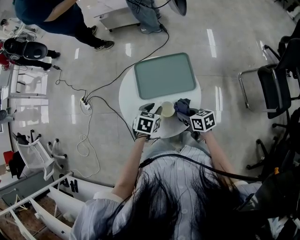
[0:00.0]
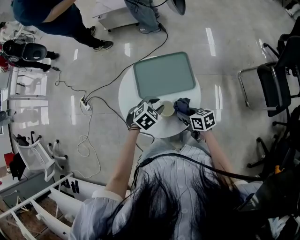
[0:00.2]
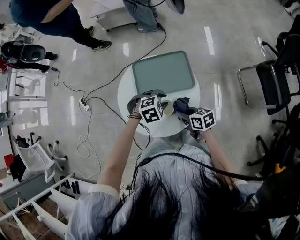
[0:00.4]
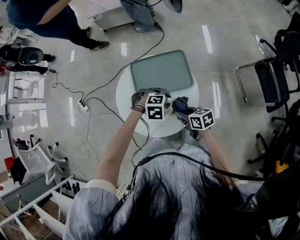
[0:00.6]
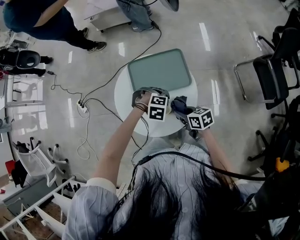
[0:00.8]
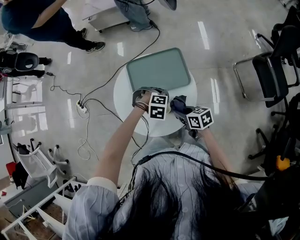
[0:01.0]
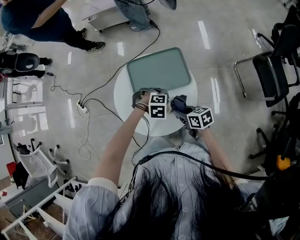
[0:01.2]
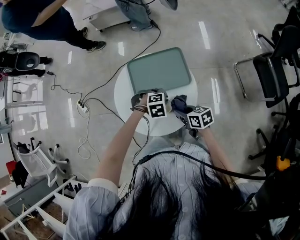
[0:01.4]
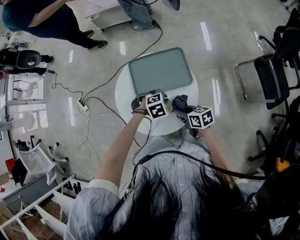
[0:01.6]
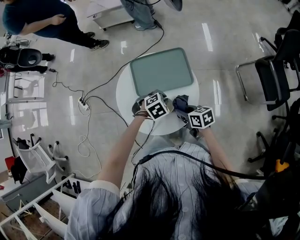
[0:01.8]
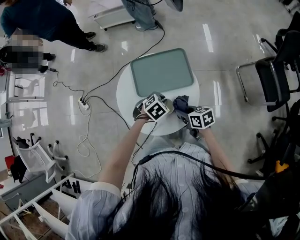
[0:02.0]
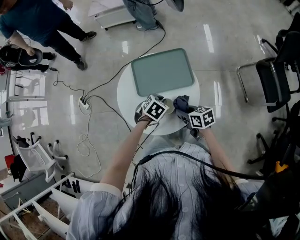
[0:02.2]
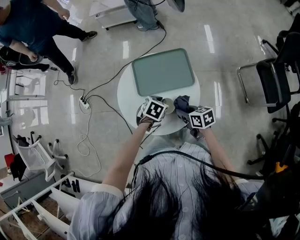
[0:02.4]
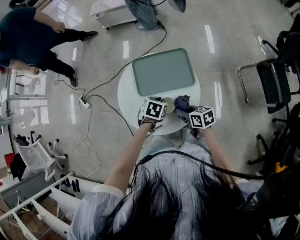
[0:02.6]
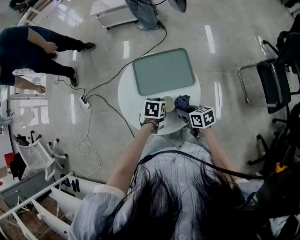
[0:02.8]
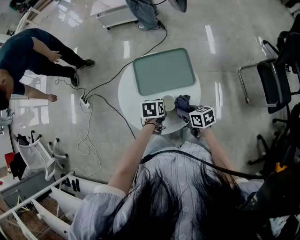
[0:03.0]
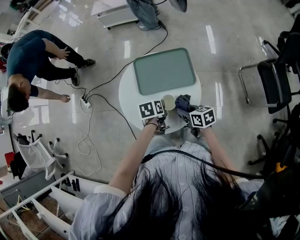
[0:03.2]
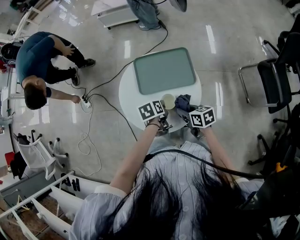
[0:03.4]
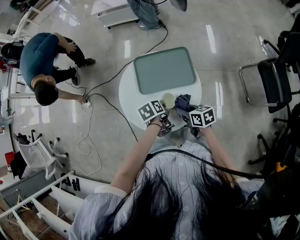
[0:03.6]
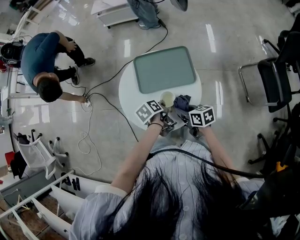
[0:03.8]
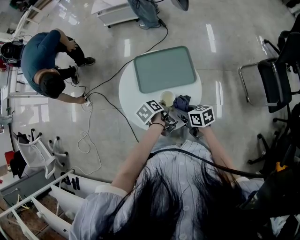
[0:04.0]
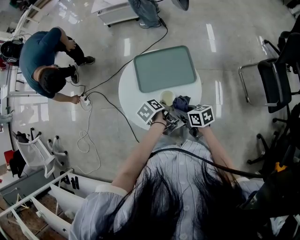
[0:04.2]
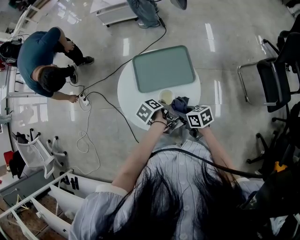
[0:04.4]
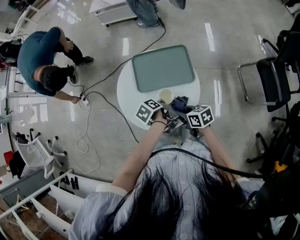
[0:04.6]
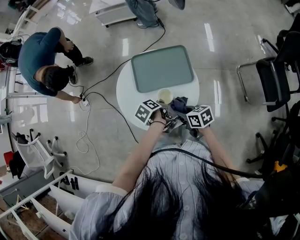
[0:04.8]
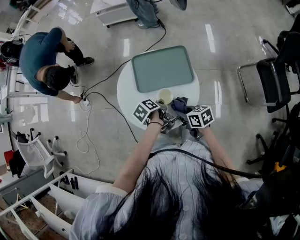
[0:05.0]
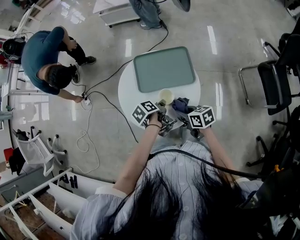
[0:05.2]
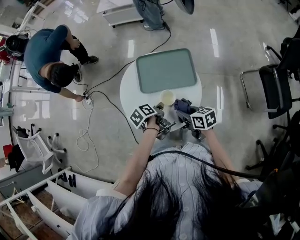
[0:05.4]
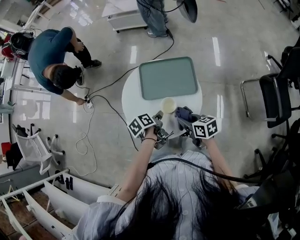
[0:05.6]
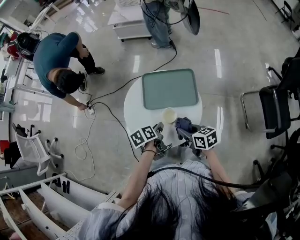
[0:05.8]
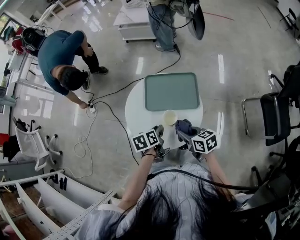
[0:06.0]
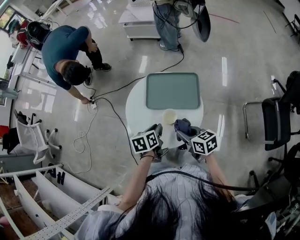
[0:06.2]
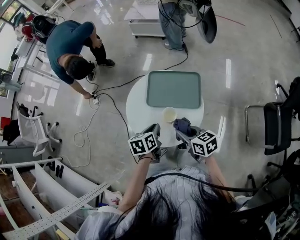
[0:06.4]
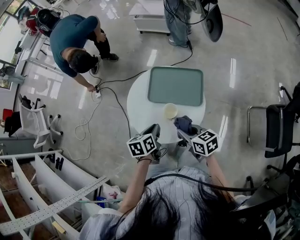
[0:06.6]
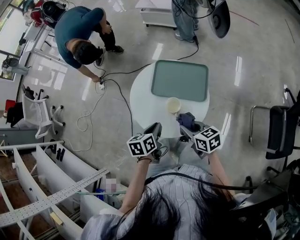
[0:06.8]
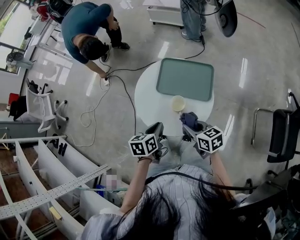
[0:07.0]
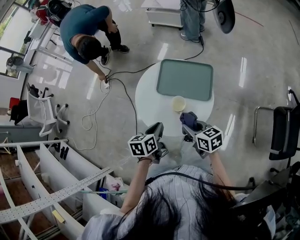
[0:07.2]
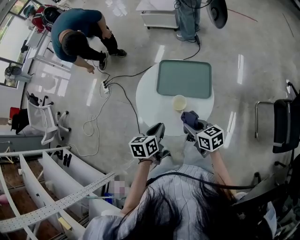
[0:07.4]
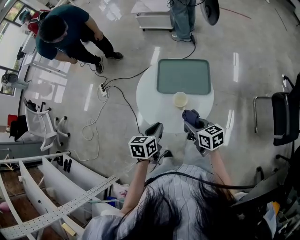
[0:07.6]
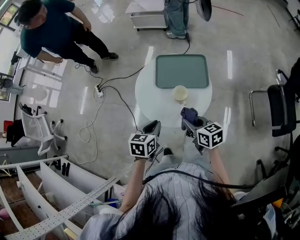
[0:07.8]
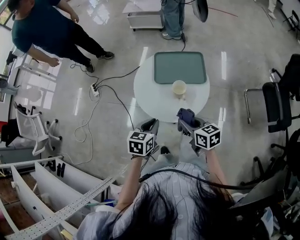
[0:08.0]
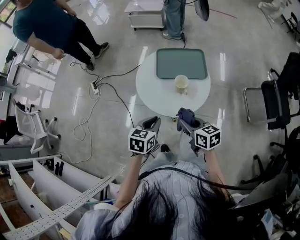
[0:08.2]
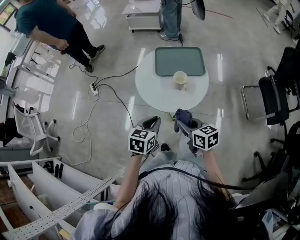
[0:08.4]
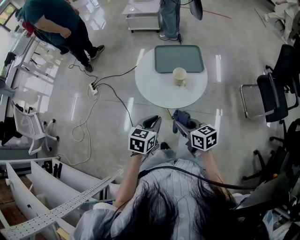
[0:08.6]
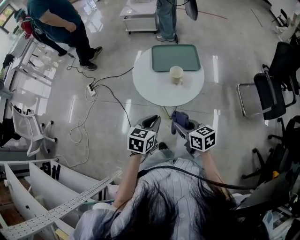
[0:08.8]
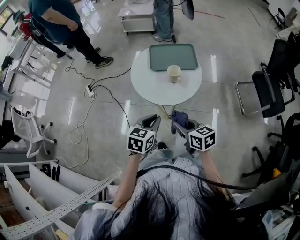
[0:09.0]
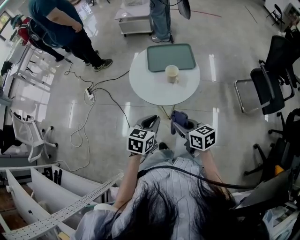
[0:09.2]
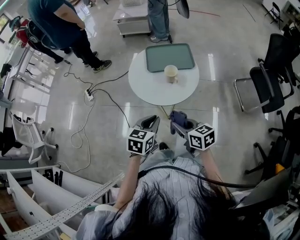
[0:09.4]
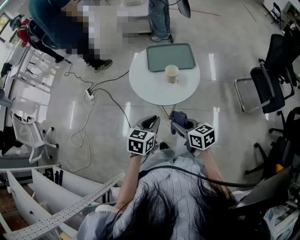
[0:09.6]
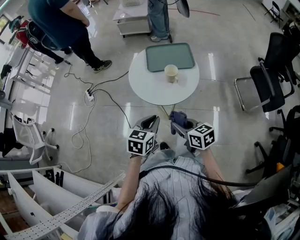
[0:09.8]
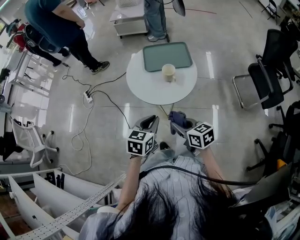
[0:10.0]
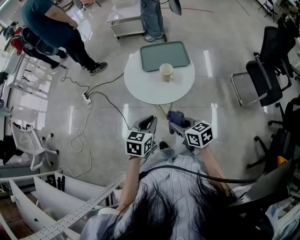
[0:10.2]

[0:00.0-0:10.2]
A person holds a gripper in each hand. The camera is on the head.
0:00.0 to 0:01.4: The left gripper changes place by some 10 cm, and rotates around the line of its fingers by about 60 degrees, clockwise from behind.
0:01.4 to 0:03.0: The left gripper shifts by about 5 cm, and rolls counterclockwise, seen from behind, by approximately 90 degrees.
0:03.0 to 0:04.4: The left gripper rolls counterclockwise, seen from behind, by some 50 degrees.
0:04.4 to 0:05.8: There are only small adjustments of the grippers.
0:05.8 to 0:07.2: The left gripper moves upward and backward, some 10 cm, and changes its angle by roughly 20 degrees.
0:07.2 to 0:08.8: The grippers both shift backward and to the left by about 20 cm. The left gripper swivels approximately 40 degrees.
0:08.8 to 0:10.2: The grippers make only small movements.

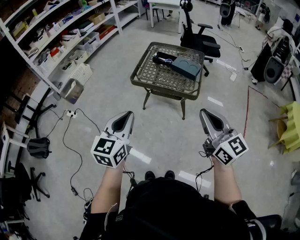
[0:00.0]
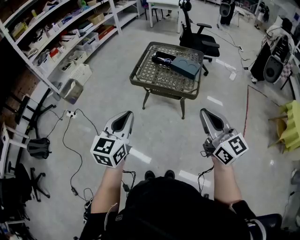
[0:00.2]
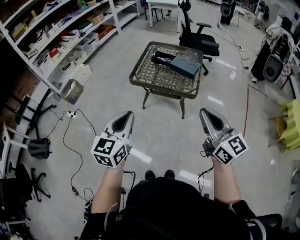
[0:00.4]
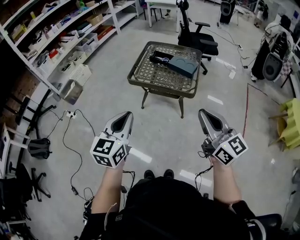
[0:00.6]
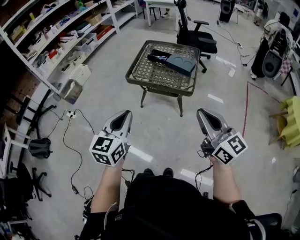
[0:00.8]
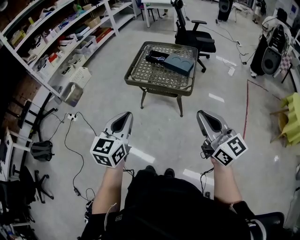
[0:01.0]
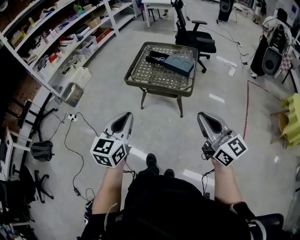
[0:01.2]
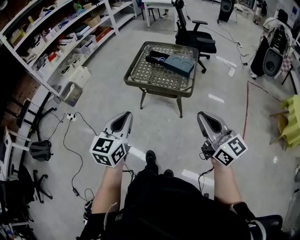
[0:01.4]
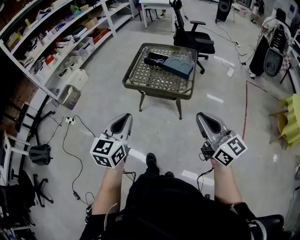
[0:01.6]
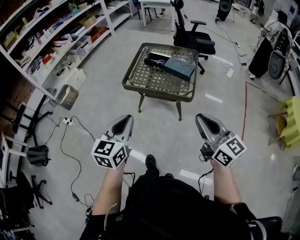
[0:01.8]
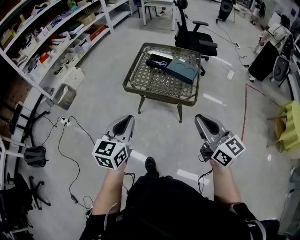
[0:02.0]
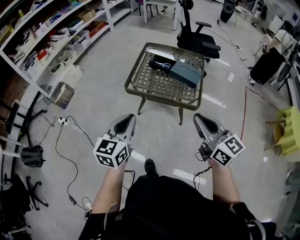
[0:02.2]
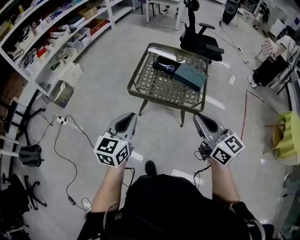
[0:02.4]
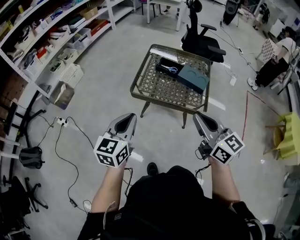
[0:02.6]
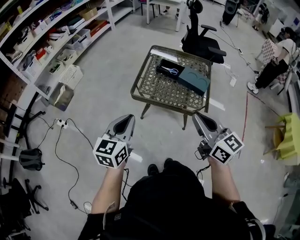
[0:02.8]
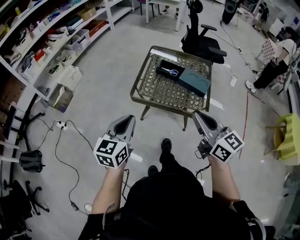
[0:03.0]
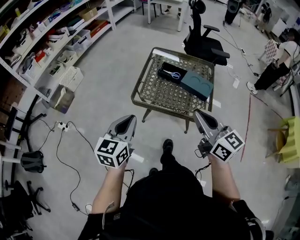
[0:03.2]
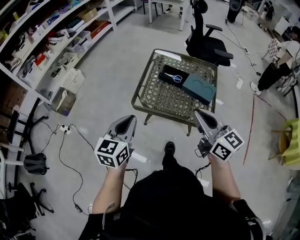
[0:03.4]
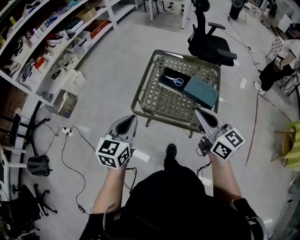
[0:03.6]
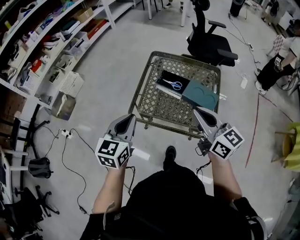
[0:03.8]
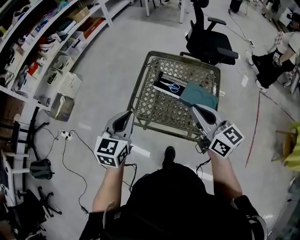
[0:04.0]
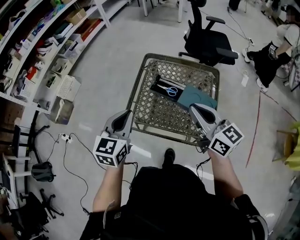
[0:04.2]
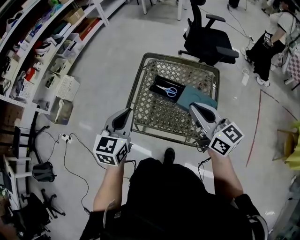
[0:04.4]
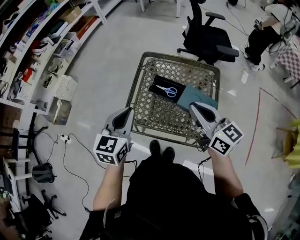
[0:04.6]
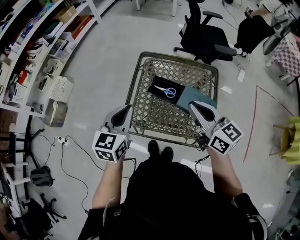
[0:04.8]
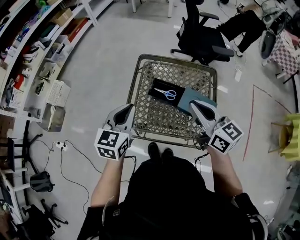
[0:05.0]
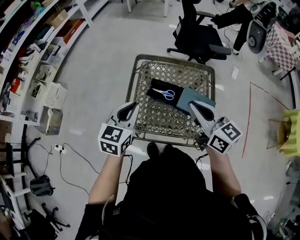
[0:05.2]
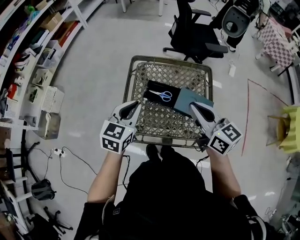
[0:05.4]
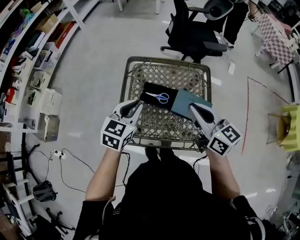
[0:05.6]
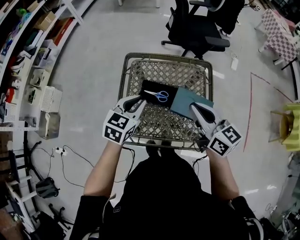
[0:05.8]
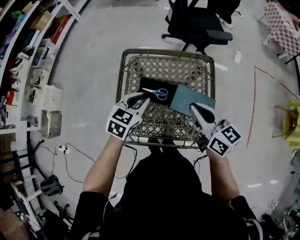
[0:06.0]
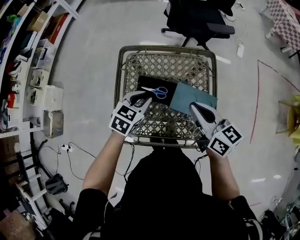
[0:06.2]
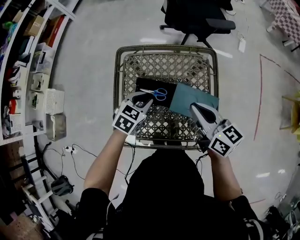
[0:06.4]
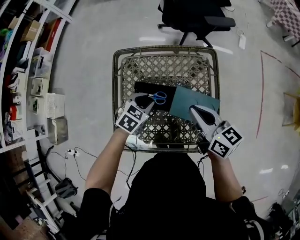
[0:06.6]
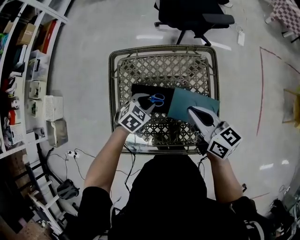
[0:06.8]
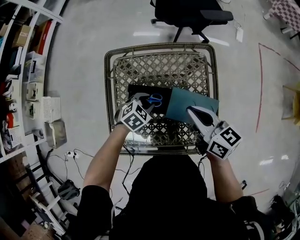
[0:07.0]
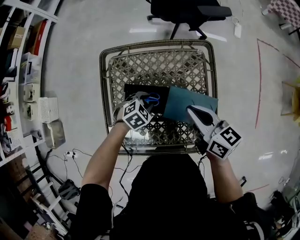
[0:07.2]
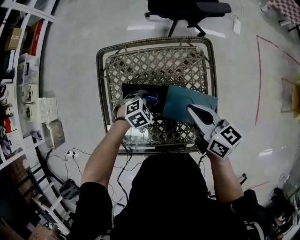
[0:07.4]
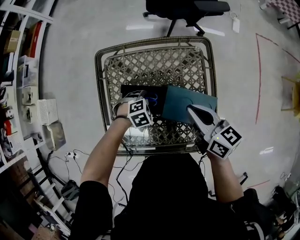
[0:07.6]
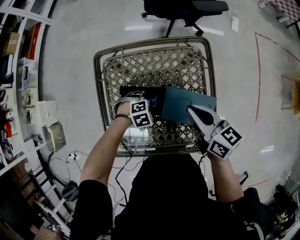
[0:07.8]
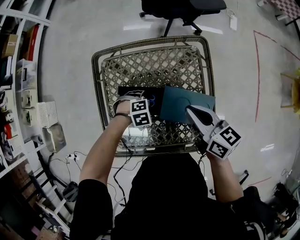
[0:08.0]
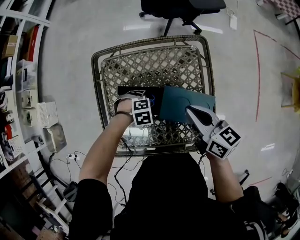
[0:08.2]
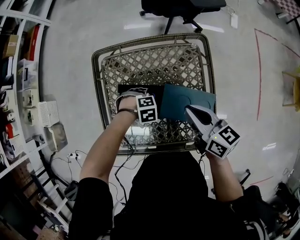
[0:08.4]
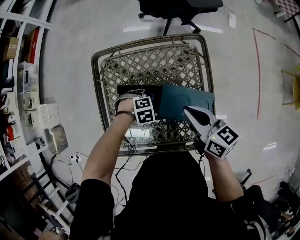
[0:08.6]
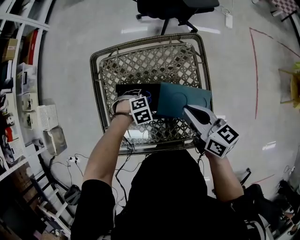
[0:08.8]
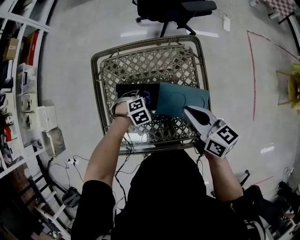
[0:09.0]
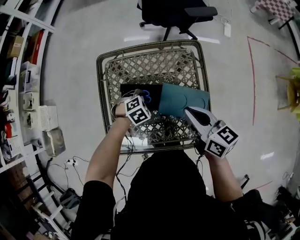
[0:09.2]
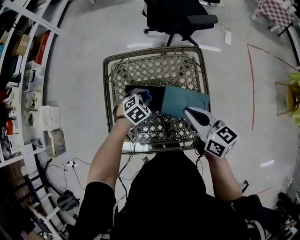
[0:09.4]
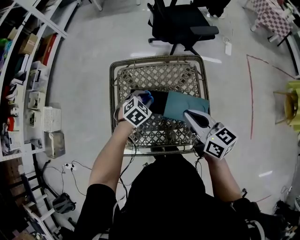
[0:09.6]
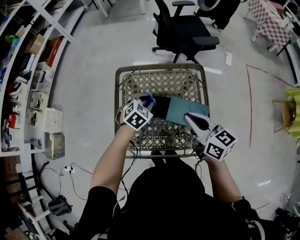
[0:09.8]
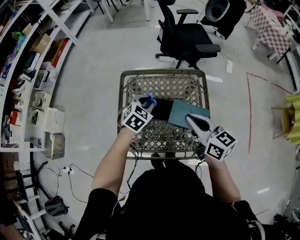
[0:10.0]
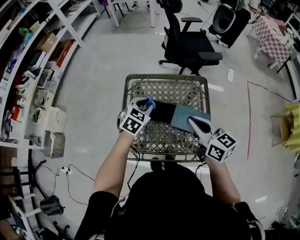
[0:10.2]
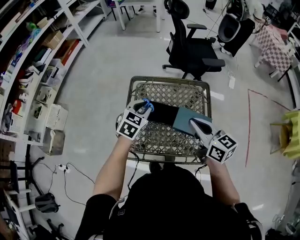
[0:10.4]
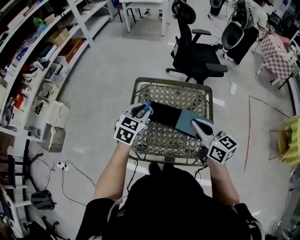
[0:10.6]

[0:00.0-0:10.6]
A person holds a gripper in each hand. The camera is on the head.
0:00.0 to 0:01.6: The left gripper moves approximately 5 cm, while the right gripper changes place by about 5 cm.
0:01.6 to 0:03.0: Both grippers travel together forward and to the left, about 25 cm.
0:03.0 to 0:04.6: Both grippers move forward, about 30 cm.
0:04.6 to 0:06.0: The right gripper heads forward and downward, covering roughly 10 cm. Meanwhile the left gripper is displaced forward, downward and to the right by roughly 20 cm, and changes its angle by roughly 30 degrees.
0:06.0 to 0:07.6: The left gripper goes roughly 25 cm downward, and angles its fingers downward, by some 40 degrees; the right gripper shifts roughly 10 cm downward.
0:07.6 to 0:09.0: The grippers stay close to where they were, moving slightly.
0:09.0 to 0:10.6: The right gripper travels upward by roughly 15 cm; the left gripper is displaced upward by some 30 cm, and points its fingers some 50 degrees further upward.

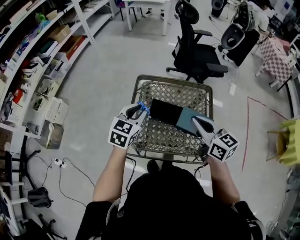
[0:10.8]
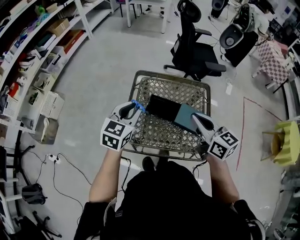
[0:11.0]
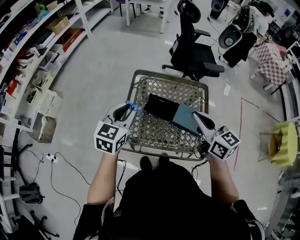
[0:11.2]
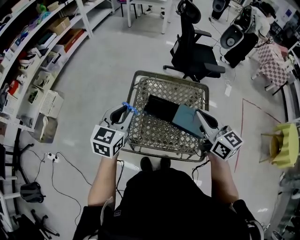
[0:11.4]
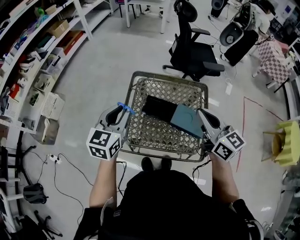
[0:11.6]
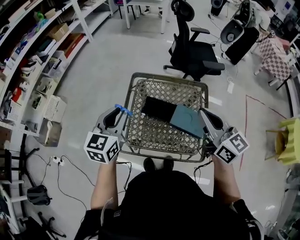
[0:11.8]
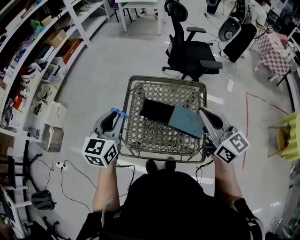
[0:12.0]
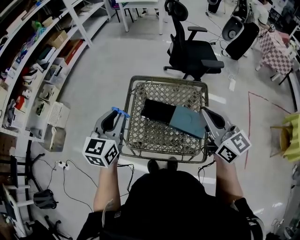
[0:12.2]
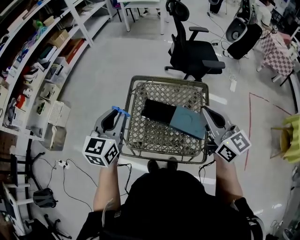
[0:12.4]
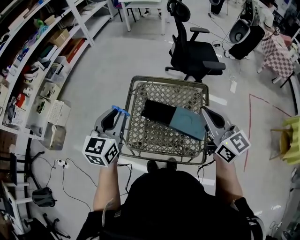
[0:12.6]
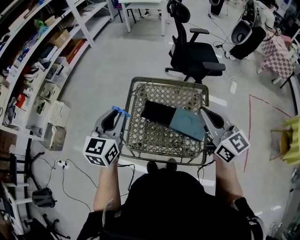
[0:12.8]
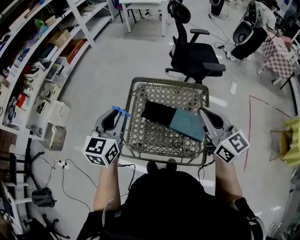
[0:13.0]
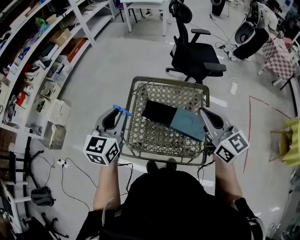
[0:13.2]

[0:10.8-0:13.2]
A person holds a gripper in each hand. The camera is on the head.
0:10.8 to 0:12.0: The two grippers go some 10 cm upward.
0:12.0 to 0:13.2: The grippers move only a little.
